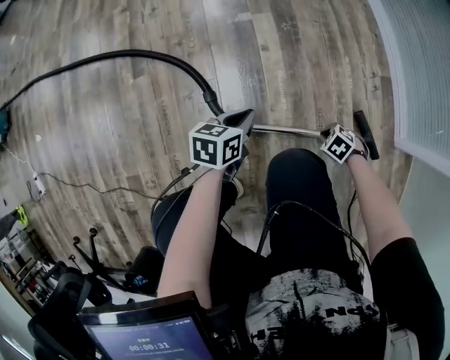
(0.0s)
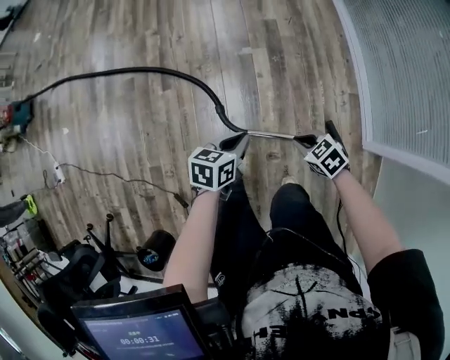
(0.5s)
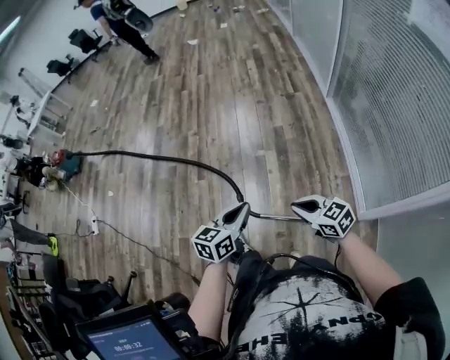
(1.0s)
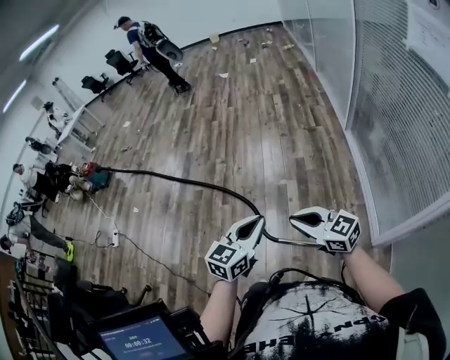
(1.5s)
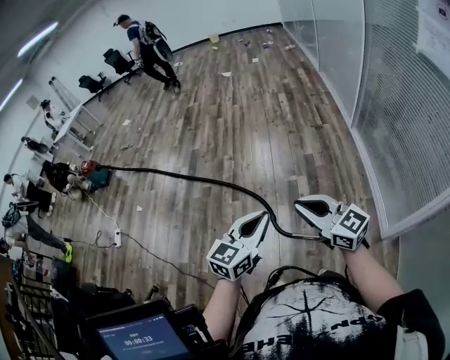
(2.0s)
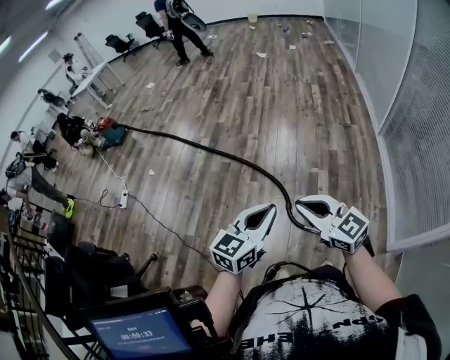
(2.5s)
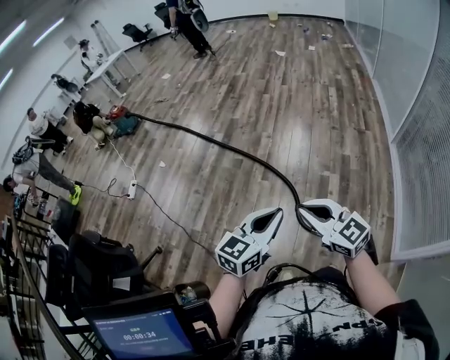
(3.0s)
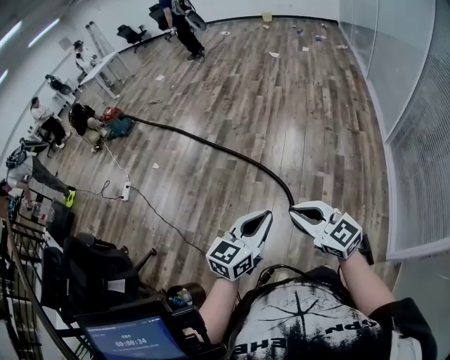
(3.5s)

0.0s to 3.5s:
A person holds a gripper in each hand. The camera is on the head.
0.0s to 2.0s: Both grippers travel together upward, some 80 cm. The left gripper tips its fingers upward by approximately 30 degrees. Meanwhile the right gripper points its fingers some 80 degrees further upward.
2.0s to 3.5s: The grippers both shift to the left by about 15 cm.

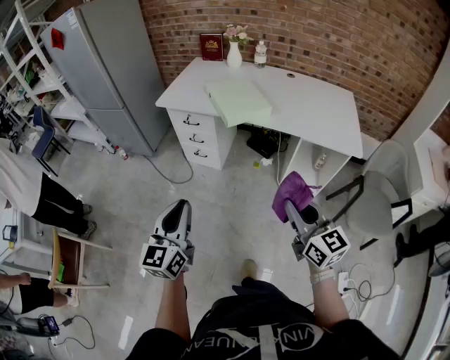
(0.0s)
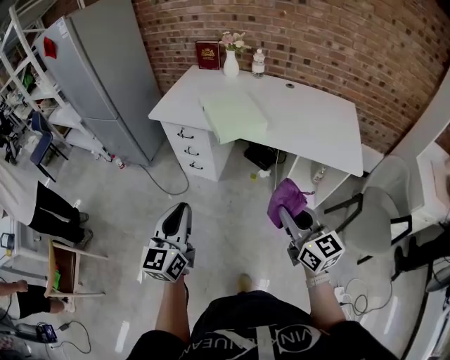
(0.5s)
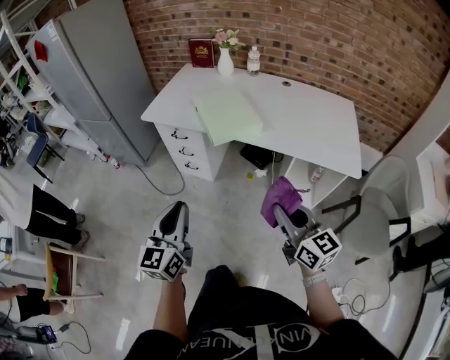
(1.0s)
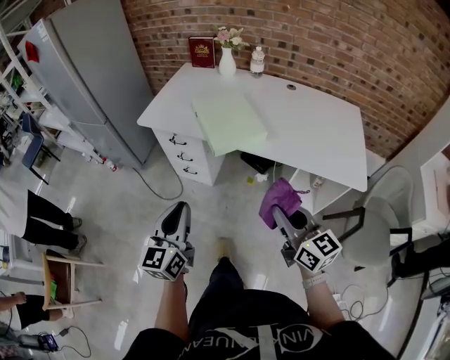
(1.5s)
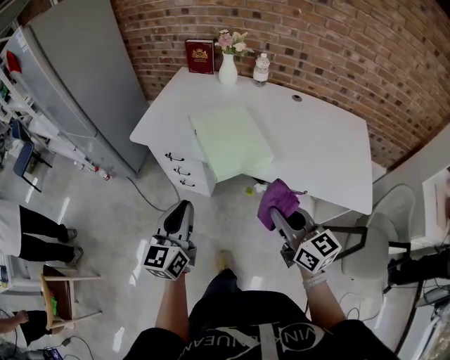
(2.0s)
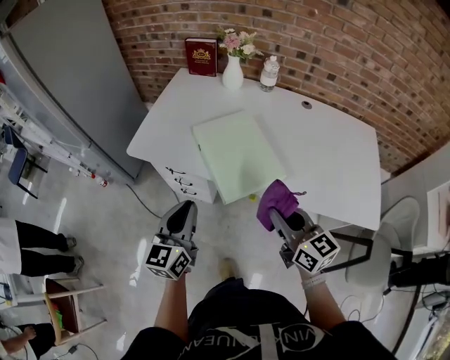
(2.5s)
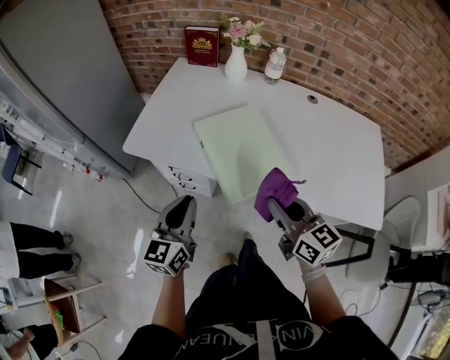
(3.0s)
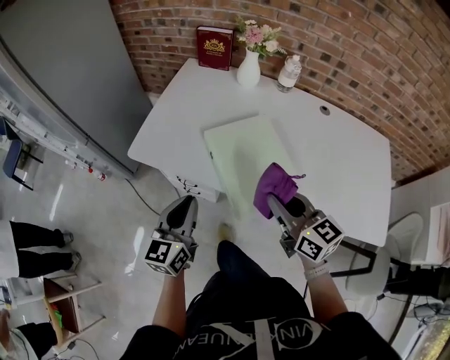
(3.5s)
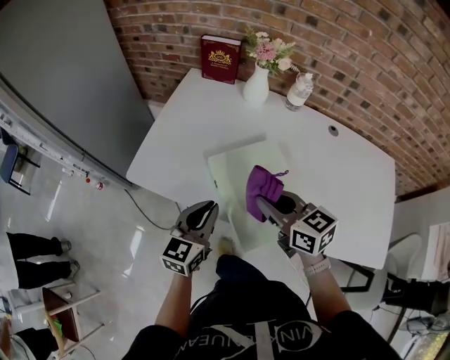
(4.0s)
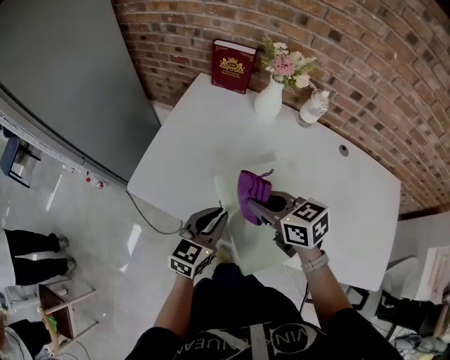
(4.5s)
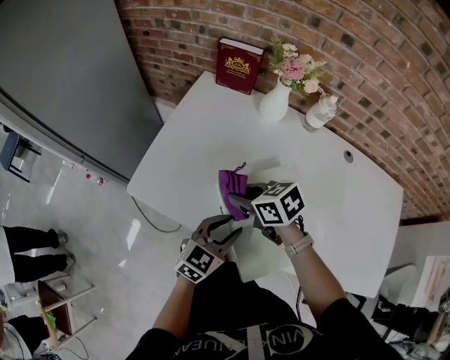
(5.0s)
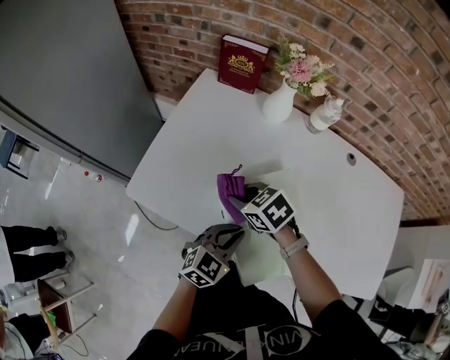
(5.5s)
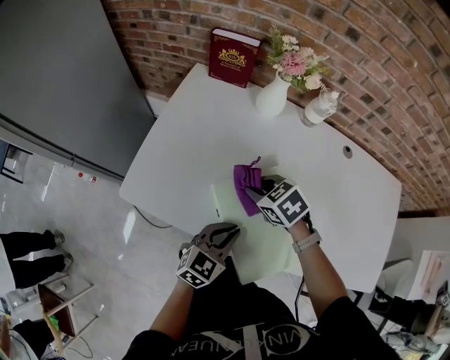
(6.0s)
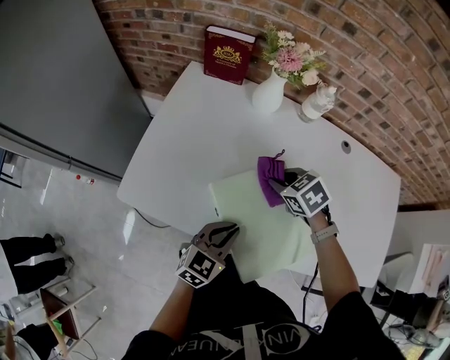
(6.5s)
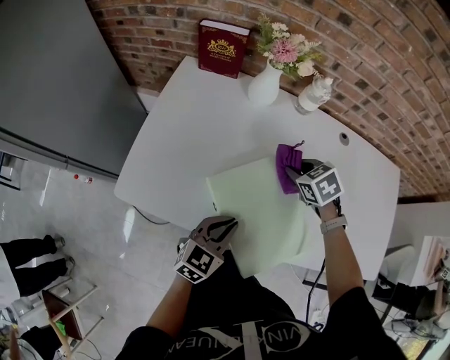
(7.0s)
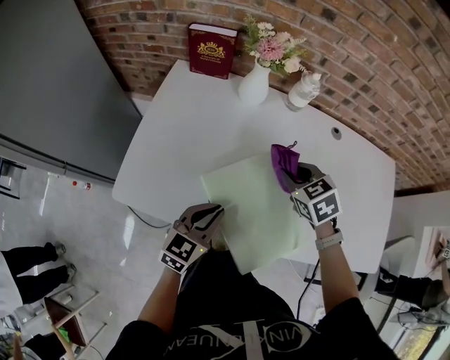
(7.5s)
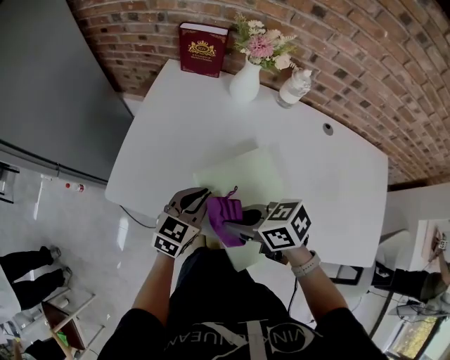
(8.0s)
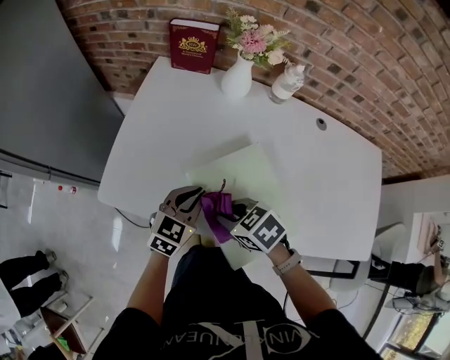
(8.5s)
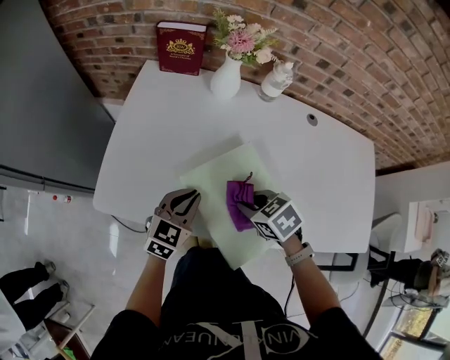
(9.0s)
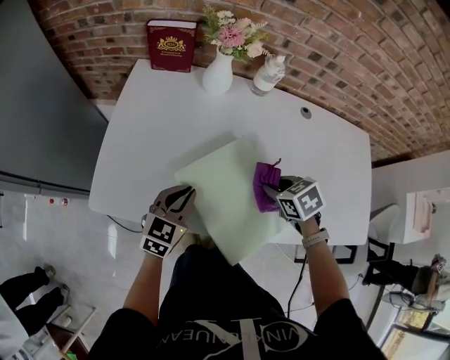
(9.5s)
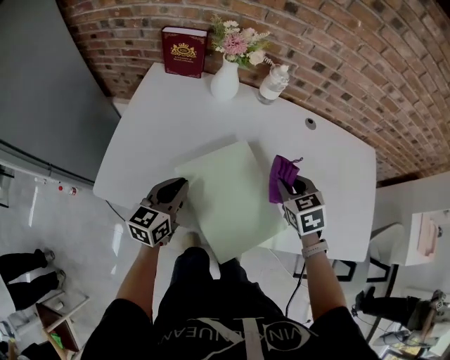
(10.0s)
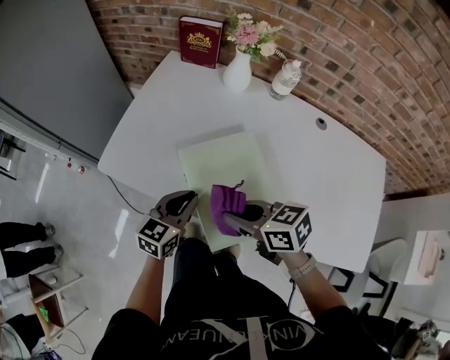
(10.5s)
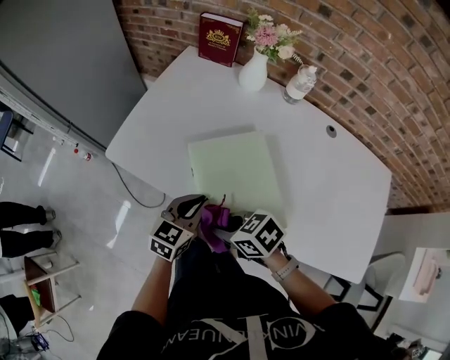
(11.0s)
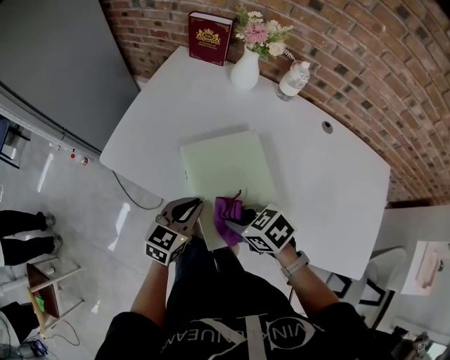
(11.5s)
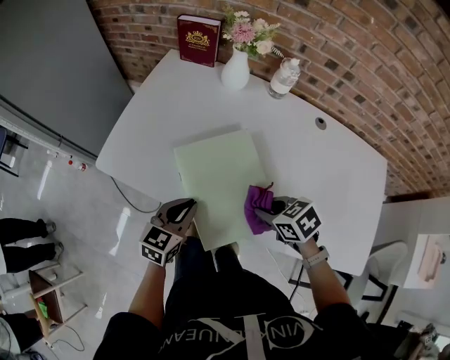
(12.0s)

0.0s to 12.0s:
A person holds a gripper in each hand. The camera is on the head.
0.0s to 2.0s: The grippers both shift forward by about 30 cm.
2.0s to 4.0s: Both grippers travel together forward, about 30 cm.
4.0s to 6.0s: The right gripper heads forward and downward, covering about 20 cm, and angles its fingers downward, by about 40 degrees. Meanwhile the left gripper heads to the right and downward, covering roughly 10 cm, and turns by approximately 30 degrees.
6.0s to 8.0s: The right gripper moves roughly 15 cm, and rotates about 30 degrees. Meanwhile the left gripper shifts by approximately 10 cm.
8.0s to 10.0s: The right gripper ends up some 25 cm from where it was, and swivels about 50 degrees.
10.0s to 12.0s: The right gripper swivels some 40 degrees. Meanwhile the left gripper moves about 10 cm.

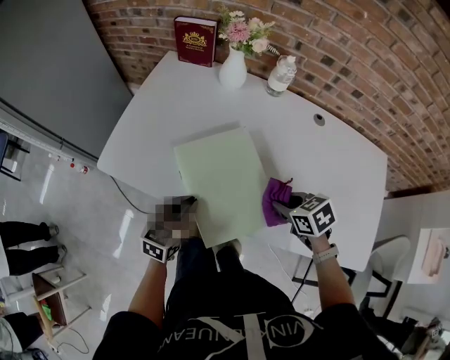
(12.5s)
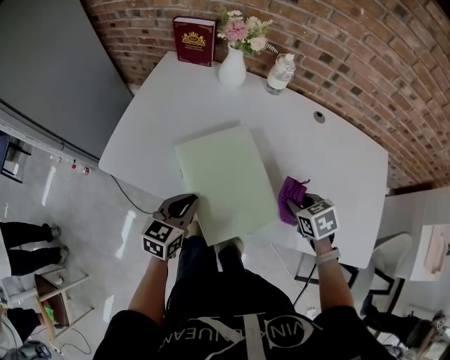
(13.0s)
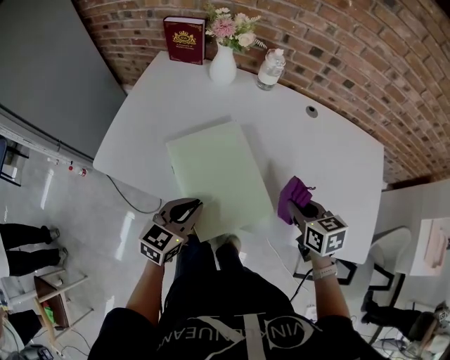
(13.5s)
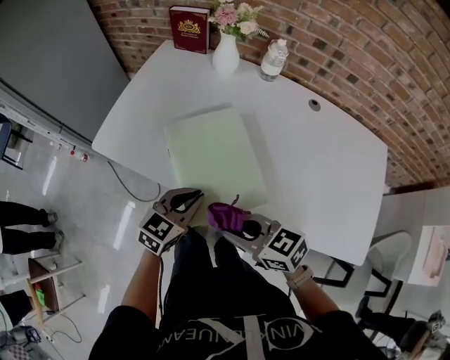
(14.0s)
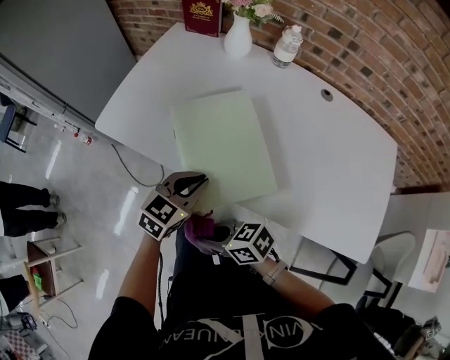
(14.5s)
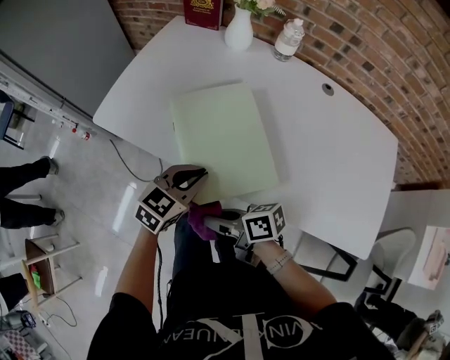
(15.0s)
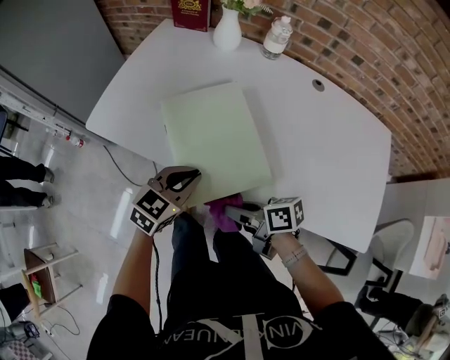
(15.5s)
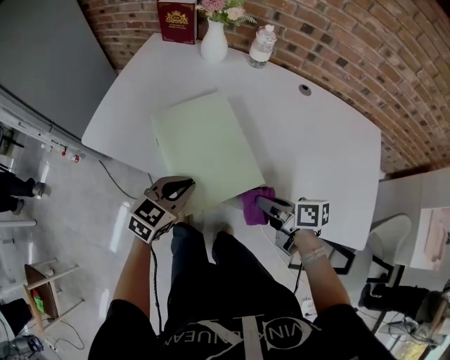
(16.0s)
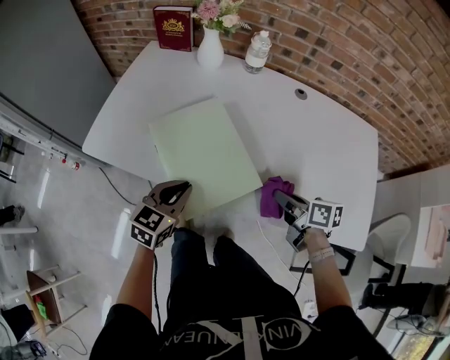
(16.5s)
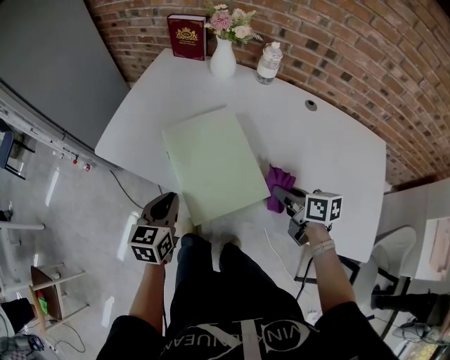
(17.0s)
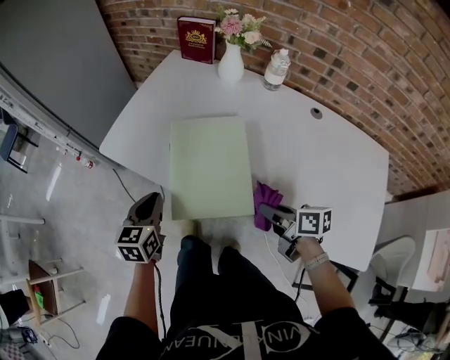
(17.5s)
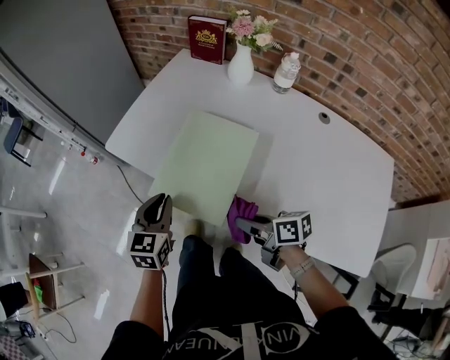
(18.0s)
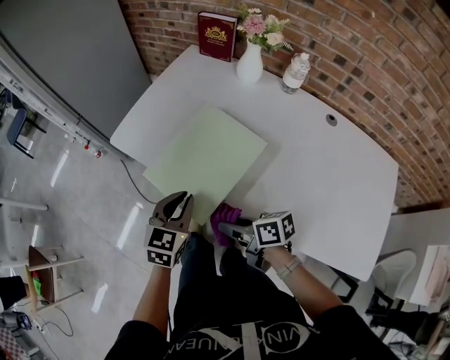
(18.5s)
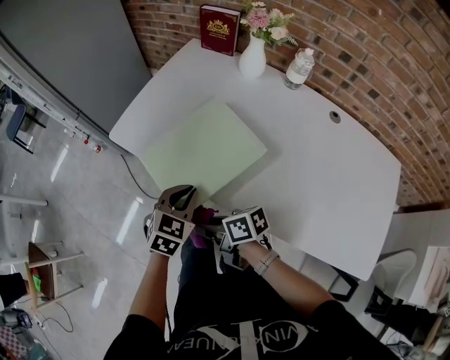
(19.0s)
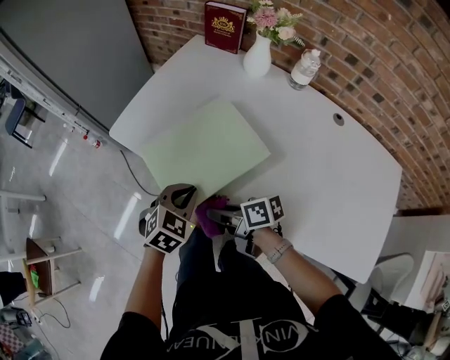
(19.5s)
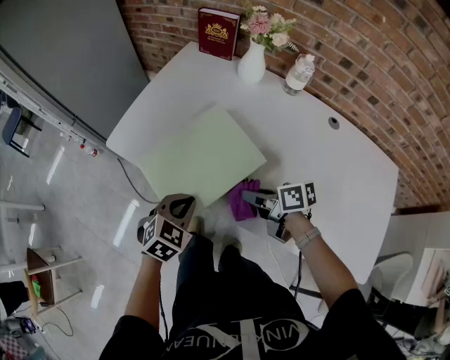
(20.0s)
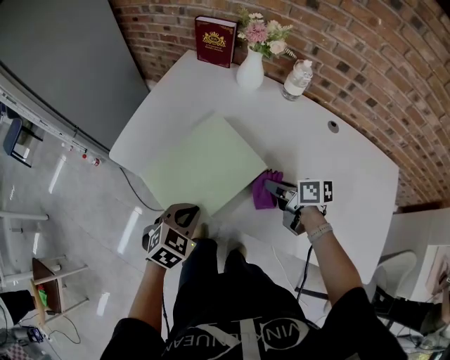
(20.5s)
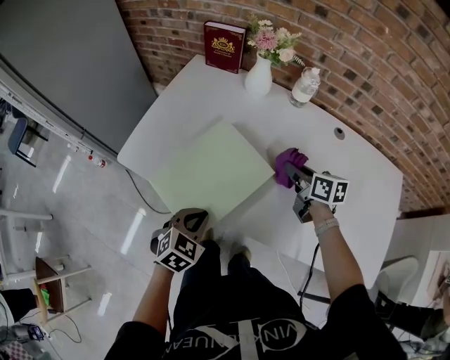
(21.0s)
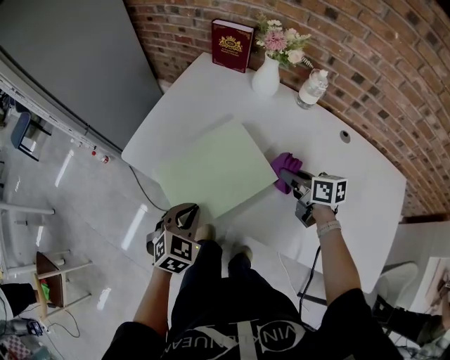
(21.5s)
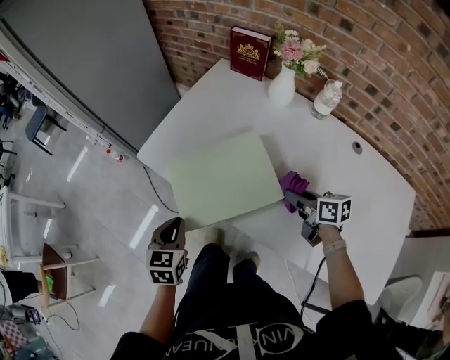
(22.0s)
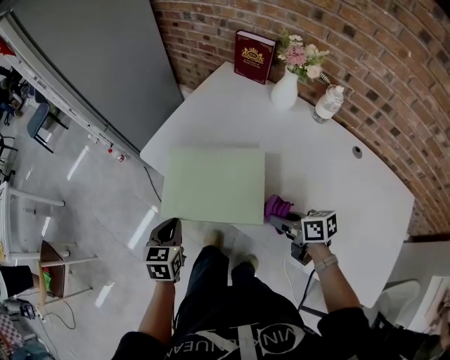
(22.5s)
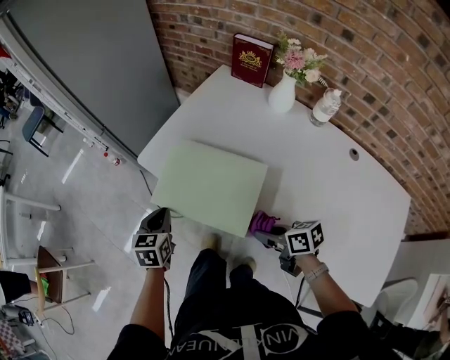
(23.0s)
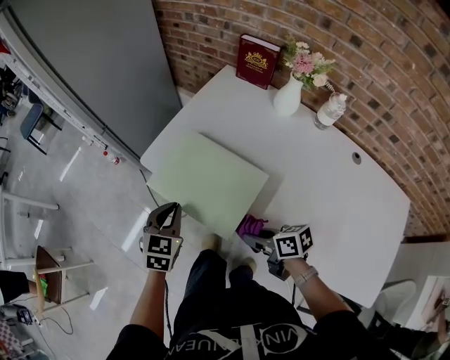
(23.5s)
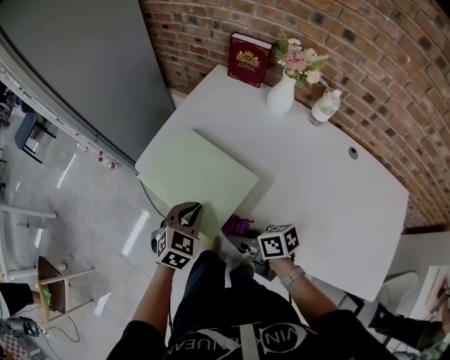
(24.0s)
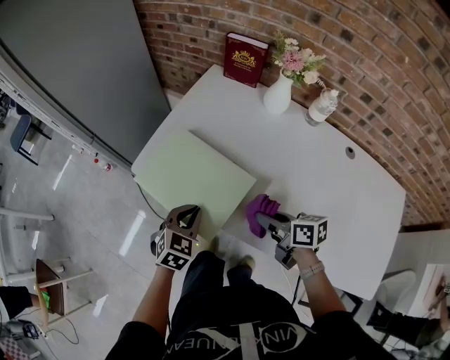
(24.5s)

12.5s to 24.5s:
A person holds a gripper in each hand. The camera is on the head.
12.5s to 14.5s: The left gripper ends up approximately 10 cm from where it was. The right gripper moves about 5 cm upward and comes back, and points its fingers about 30 degrees further upward.
14.5s to 16.5s: The right gripper changes place by approximately 30 cm, and swivels about 50 degrees.
16.5s to 18.5s: The right gripper ends up roughly 25 cm from where it was, and turns by roughly 40 degrees. The left gripper rotates some 20 degrees.
18.5s to 20.5s: The right gripper goes about 20 cm to the right and forward; the left gripper changes its angle by some 30 degrees.
20.5s to 22.5s: The left gripper moves some 15 cm, and rotates around the line of its fingers by roughly 40 degrees, counterclockwise from behind. Meanwhile the right gripper moves some 10 cm.
22.5s to 24.5s: The left gripper moves to the right, some 10 cm, and changes its angle by roughly 40 degrees. The right gripper travels forward by roughly 5 cm, and moves about 15 cm to the left and comes back.
